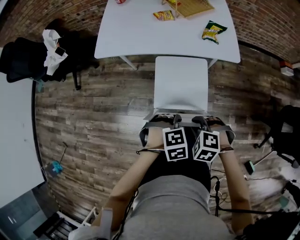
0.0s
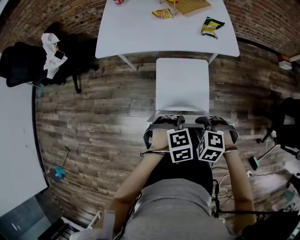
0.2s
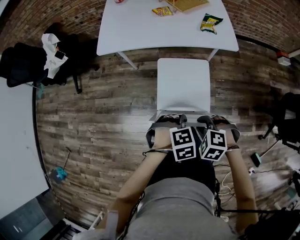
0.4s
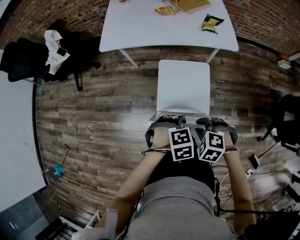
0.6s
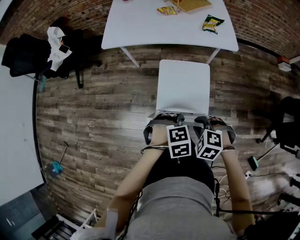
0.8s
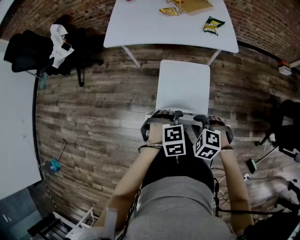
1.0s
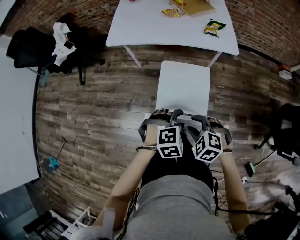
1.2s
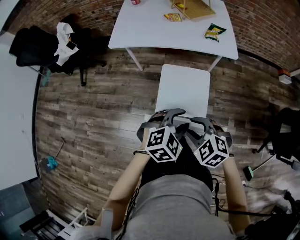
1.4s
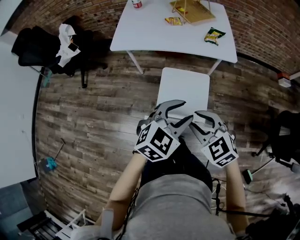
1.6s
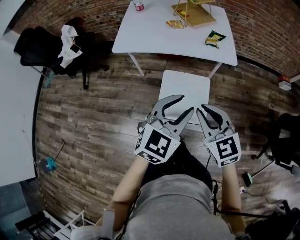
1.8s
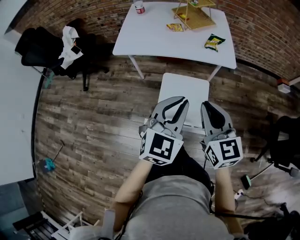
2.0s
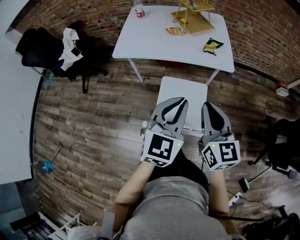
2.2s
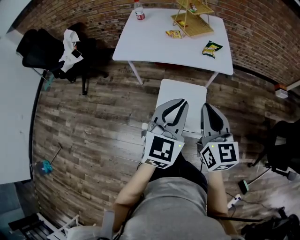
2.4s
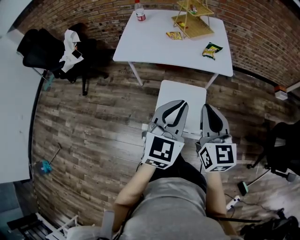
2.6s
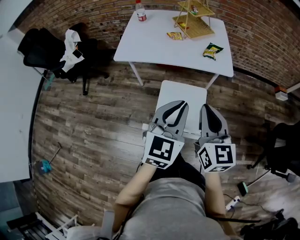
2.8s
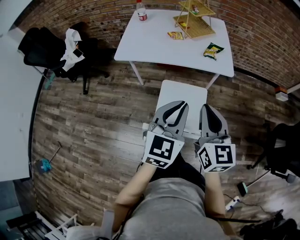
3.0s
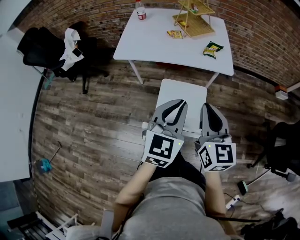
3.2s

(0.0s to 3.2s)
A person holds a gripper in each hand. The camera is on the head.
0.0s - 1.6s: The right gripper travels upward and backward by roughly 15 cm, and points its fingers some 30 degrees further upward. The left gripper goes approximately 20 cm upward, points its fingers roughly 40 degrees further upward, and opens up.
1.6s - 3.2s: The right gripper heads upward and forward, covering roughly 10 cm, changes its angle by about 50 degrees, and closes up; the left gripper goes some 5 cm upward, swivels some 30 degrees, and closes up.

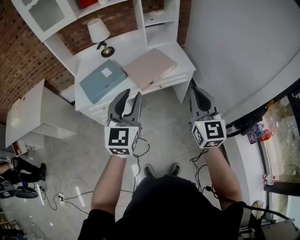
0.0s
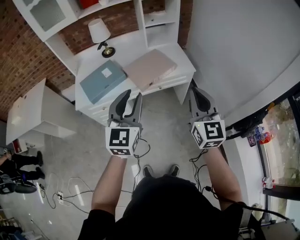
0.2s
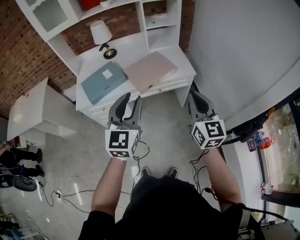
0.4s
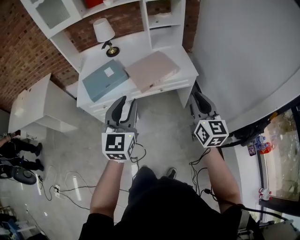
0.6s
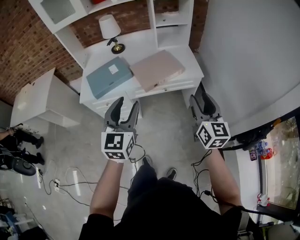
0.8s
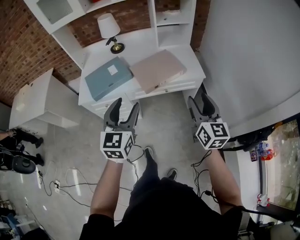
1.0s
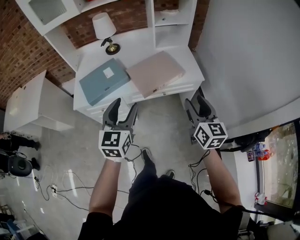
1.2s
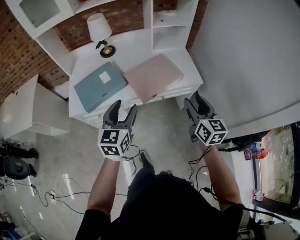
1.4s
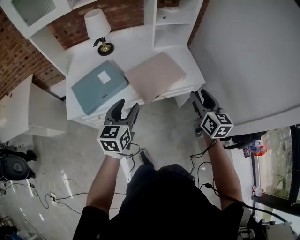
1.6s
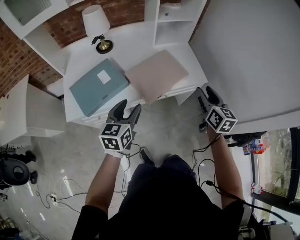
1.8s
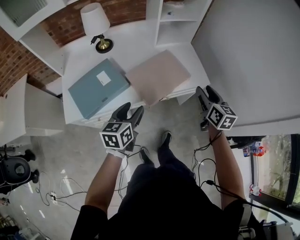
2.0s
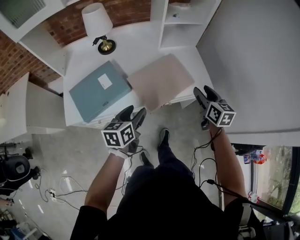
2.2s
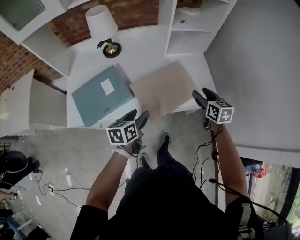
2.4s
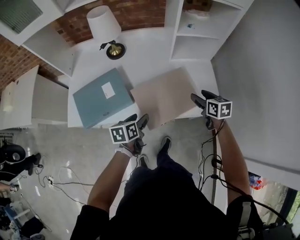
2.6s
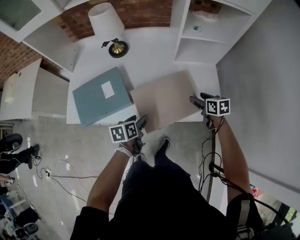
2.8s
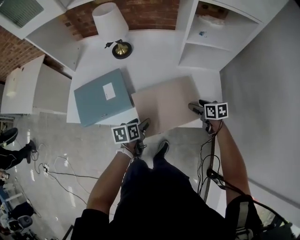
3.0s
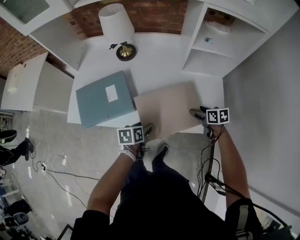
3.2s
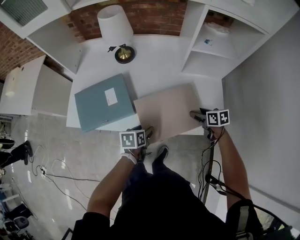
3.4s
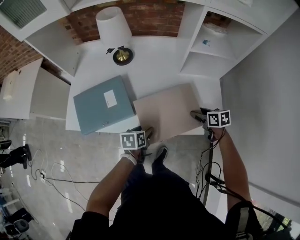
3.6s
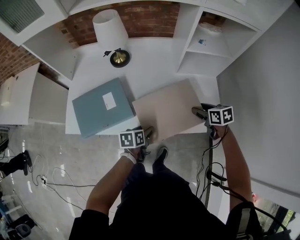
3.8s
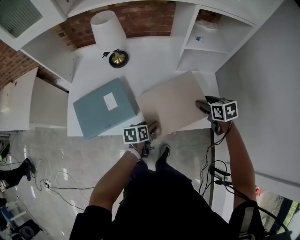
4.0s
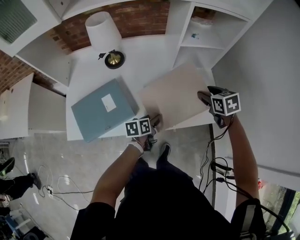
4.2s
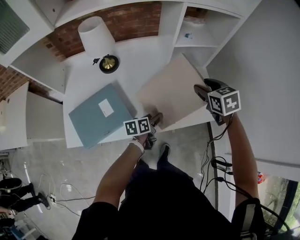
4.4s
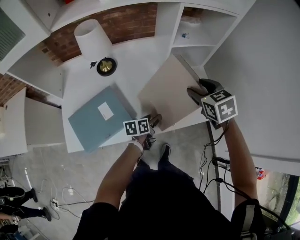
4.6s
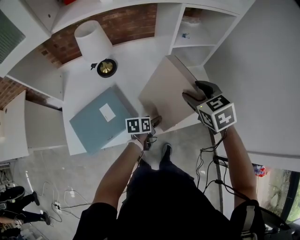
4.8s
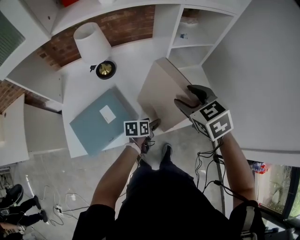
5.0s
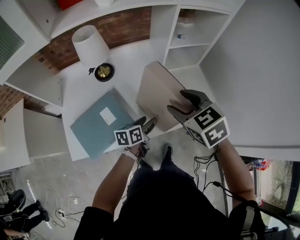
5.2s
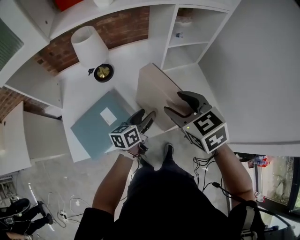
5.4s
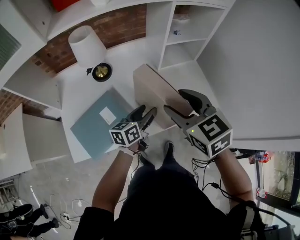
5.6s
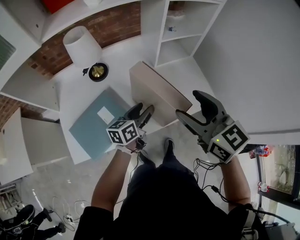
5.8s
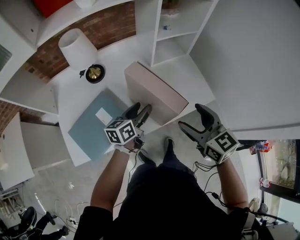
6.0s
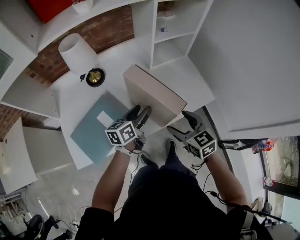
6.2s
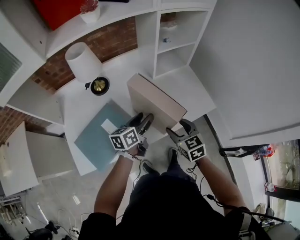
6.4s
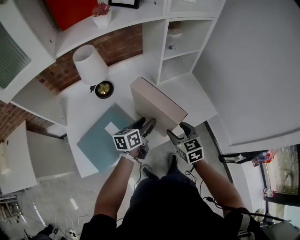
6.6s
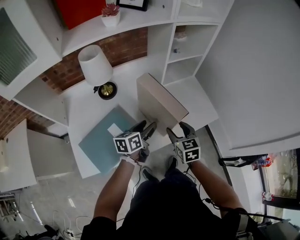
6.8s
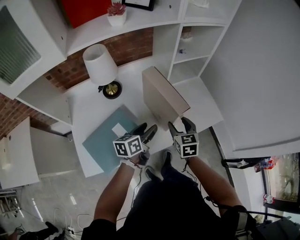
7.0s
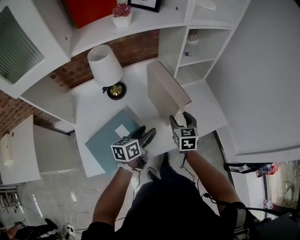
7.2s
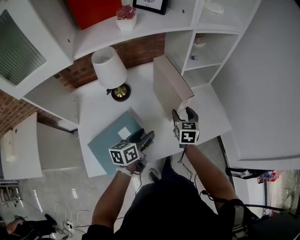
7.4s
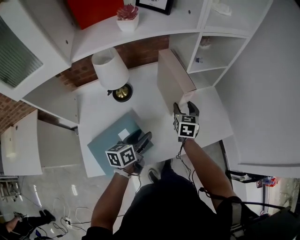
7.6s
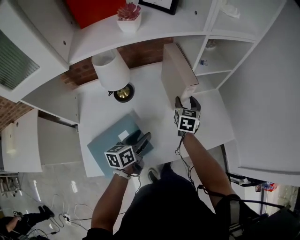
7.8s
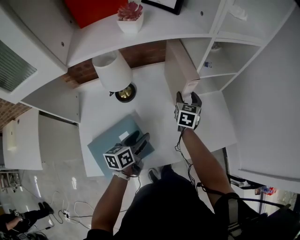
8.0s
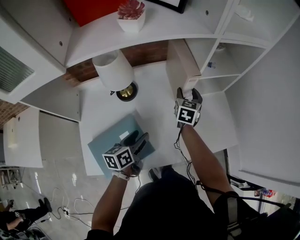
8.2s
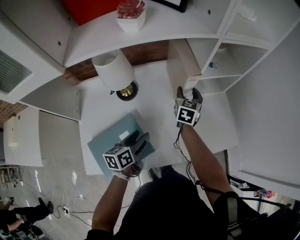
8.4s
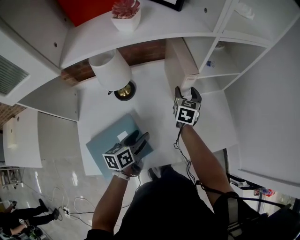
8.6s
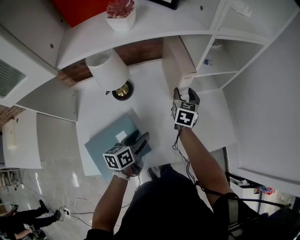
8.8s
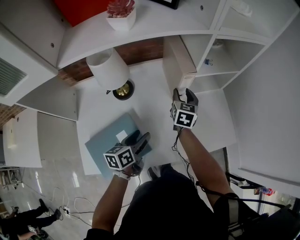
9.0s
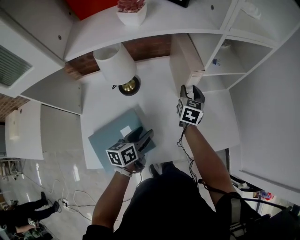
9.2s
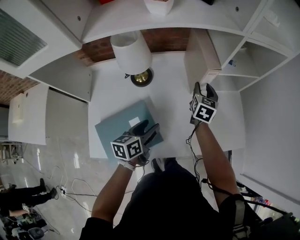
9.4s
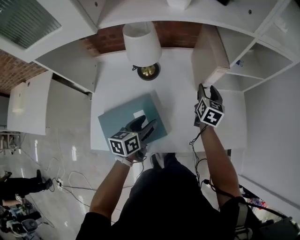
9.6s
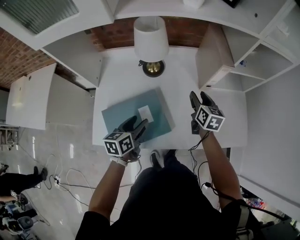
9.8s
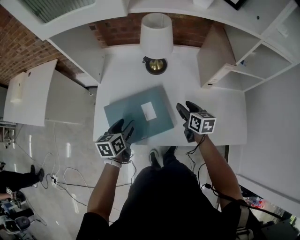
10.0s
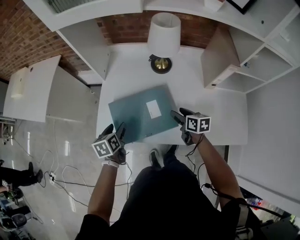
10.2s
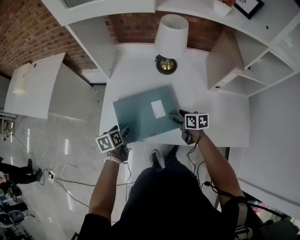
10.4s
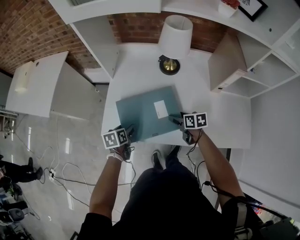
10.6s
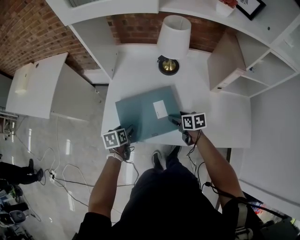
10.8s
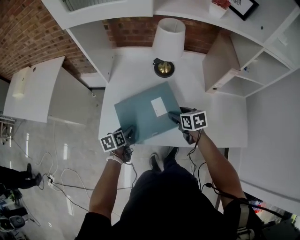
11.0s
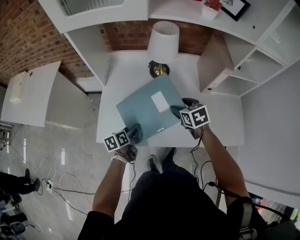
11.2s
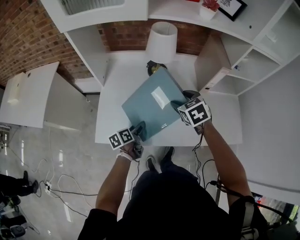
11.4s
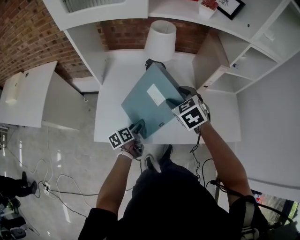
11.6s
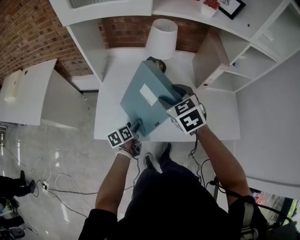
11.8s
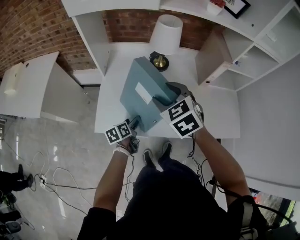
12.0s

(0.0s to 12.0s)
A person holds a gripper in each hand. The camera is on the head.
0.0s - 1.6s: The left gripper travels forward, downward and to the left by some 25 cm, rotates some 30 degrees, and opens up, while the right gripper shifts roughly 25 cm forward and downward, changes its angle by some 30 degrees, and opens its fingers.
1.6s - 3.0s: The left gripper is displaced downward by some 20 cm, and turns by approximately 50 degrees. The right gripper ends up roughly 40 cm from where it was, and angles its fingers downward, by approximately 30 degrees.
3.0s - 4.4s: The left gripper ends up roughly 10 cm from where it was, and changes its angle by some 20 degrees. The right gripper moves upward, approximately 20 cm, and changes its angle by roughly 30 degrees.
4.4s - 6.0s: The right gripper shifts approximately 20 cm backward, and swivels about 30 degrees. The left gripper travels upward and to the left by approximately 15 cm, and swivels about 20 degrees.
6.0s - 7.6s: The left gripper goes some 10 cm to the left; the right gripper travels forward, downward and to the left by roughly 30 cm, and rotates about 30 degrees.
7.6s - 9.0s: The right gripper shifts some 10 cm forward.
9.0s - 10.4s: The right gripper moves approximately 35 cm, and changes its angle by about 60 degrees. Meanwhile the left gripper shifts by about 35 cm, and changes its angle by roughly 40 degrees.
10.4s - 12.0s: The left gripper goes some 5 cm to the right; the right gripper goes about 25 cm upward, and twists about 50 degrees counterclockwise, seen from behind.

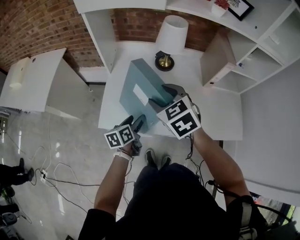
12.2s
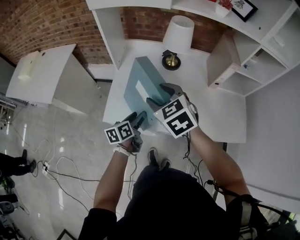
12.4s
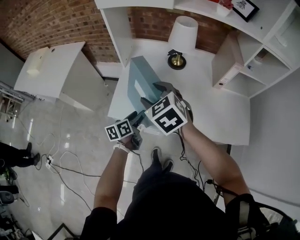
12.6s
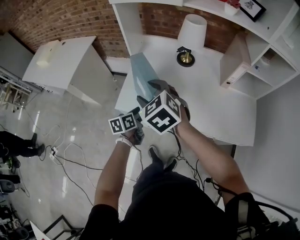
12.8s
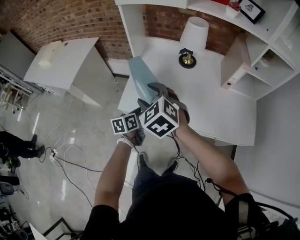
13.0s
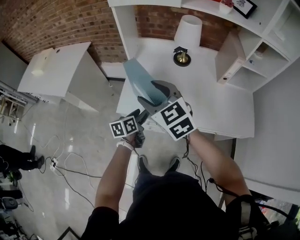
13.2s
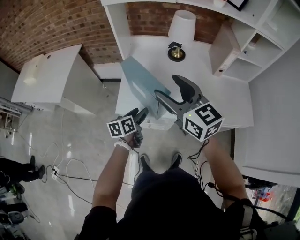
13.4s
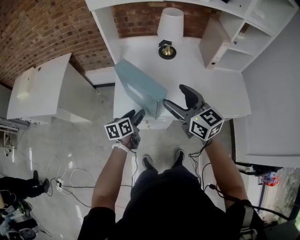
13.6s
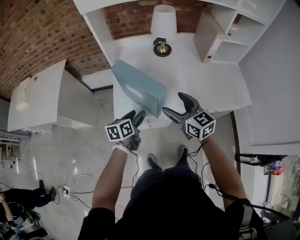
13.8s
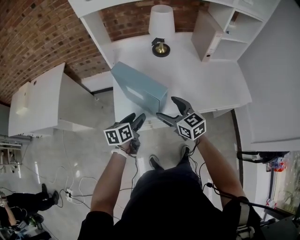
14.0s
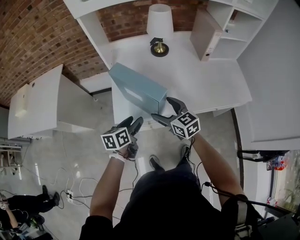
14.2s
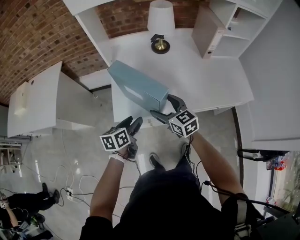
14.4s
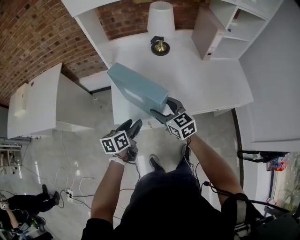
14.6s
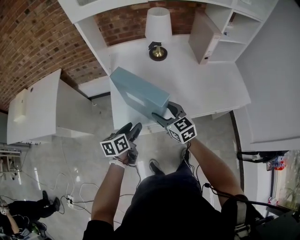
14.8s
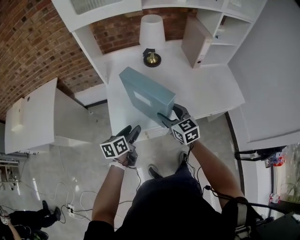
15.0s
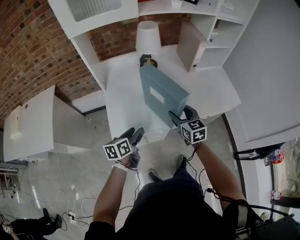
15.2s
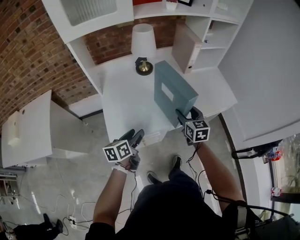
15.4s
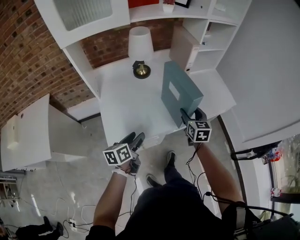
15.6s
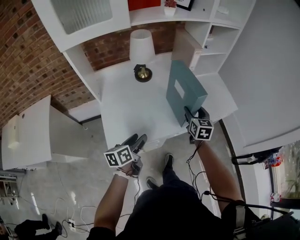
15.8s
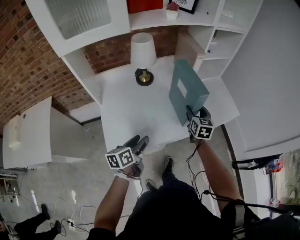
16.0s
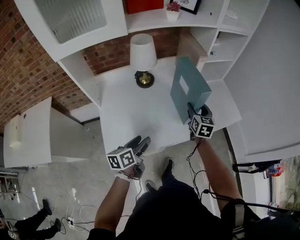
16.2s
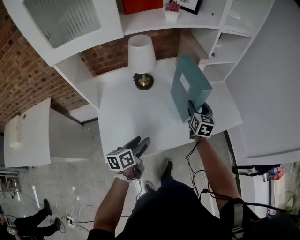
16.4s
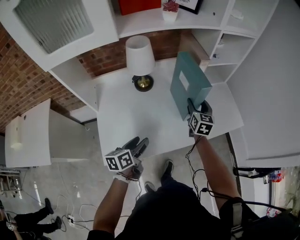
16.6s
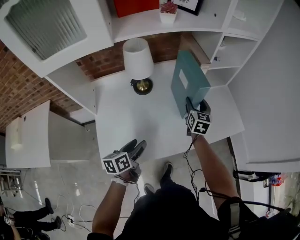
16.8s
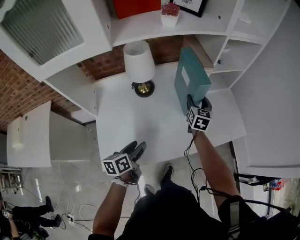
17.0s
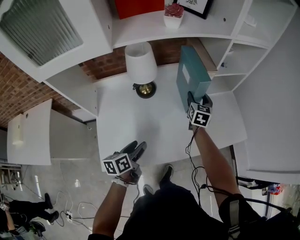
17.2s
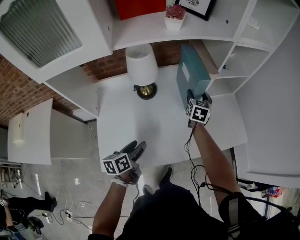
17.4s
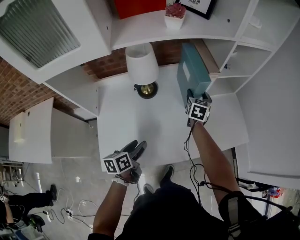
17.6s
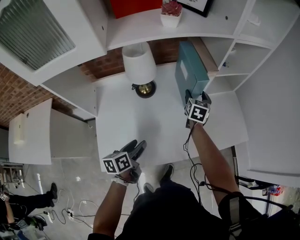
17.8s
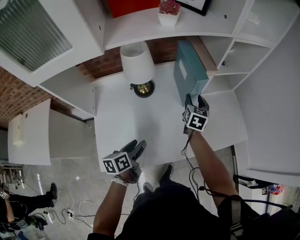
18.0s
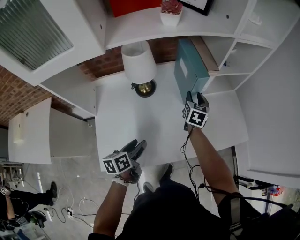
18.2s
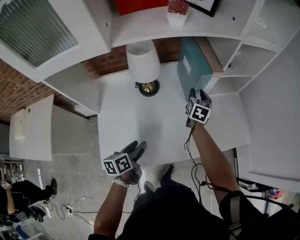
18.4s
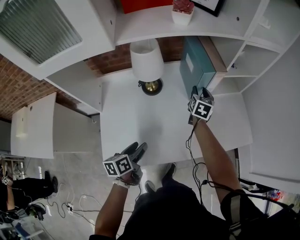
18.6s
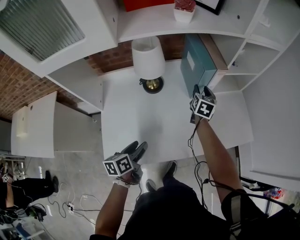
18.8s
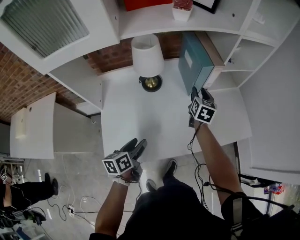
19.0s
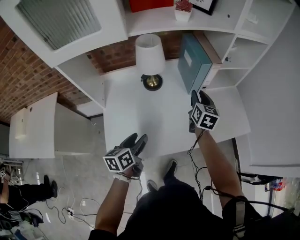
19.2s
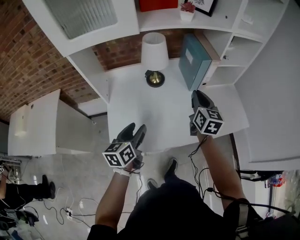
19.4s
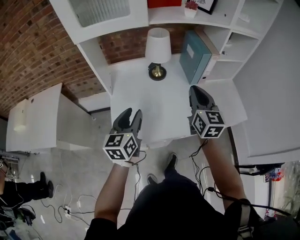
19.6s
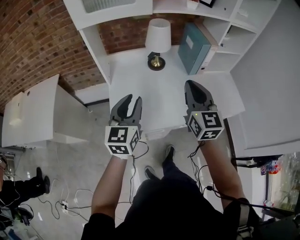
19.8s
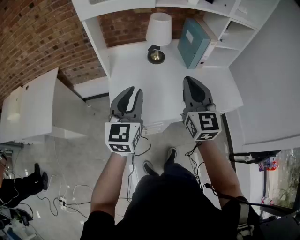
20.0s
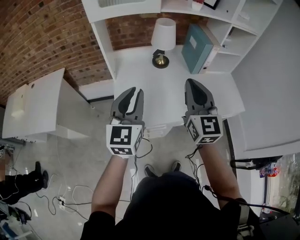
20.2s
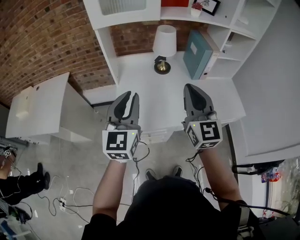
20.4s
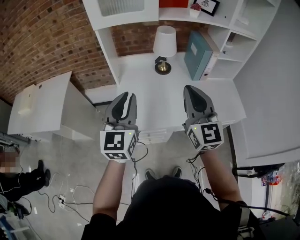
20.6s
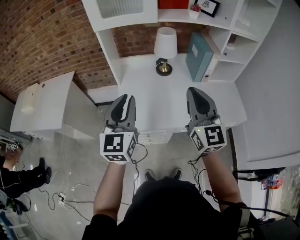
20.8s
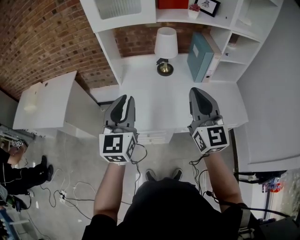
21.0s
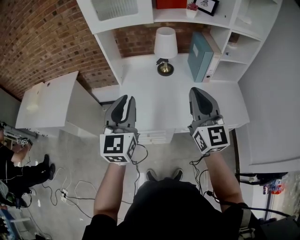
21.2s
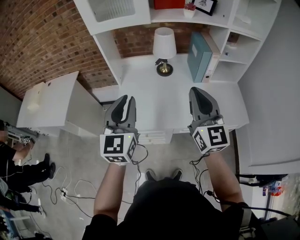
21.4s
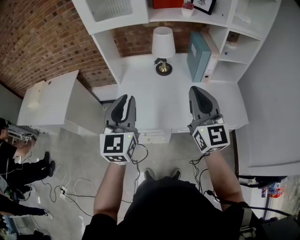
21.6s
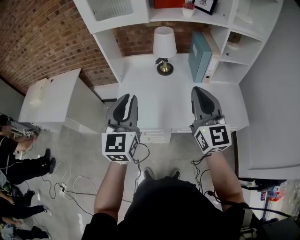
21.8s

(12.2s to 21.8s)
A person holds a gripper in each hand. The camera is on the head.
12.2s - 13.8s: The left gripper is displaced to the left and backward by roughly 10 cm. Meanwhile the right gripper heads backward and downward, covering about 15 cm, and rotates some 40 degrees.
13.8s - 15.4s: The right gripper travels to the right and downward by roughly 15 cm, and swivels roughly 40 degrees.
15.4s - 17.0s: The right gripper moves forward, approximately 30 cm. The left gripper moves forward, about 15 cm.
17.0s - 18.6s: The right gripper swings forward and backward, approximately 5 cm each way, with 2 reversals.
18.6s - 20.2s: The left gripper goes roughly 30 cm upward and backward, rotates around the line of its fingers by about 50 degrees, clockwise from behind, and closes its fingers; the right gripper travels backward and upward by roughly 50 cm, tips its fingers upward by about 30 degrees, and closes.
20.2s - 21.8s: The two grippers go some 10 cm to the right.
